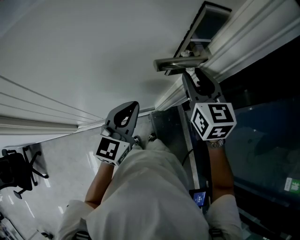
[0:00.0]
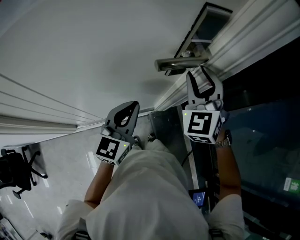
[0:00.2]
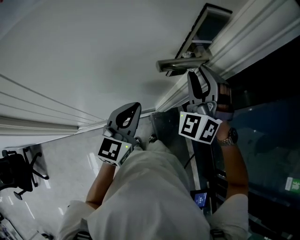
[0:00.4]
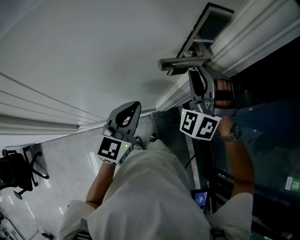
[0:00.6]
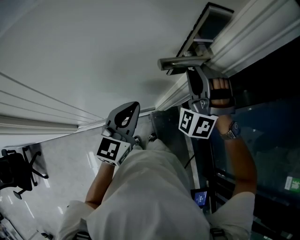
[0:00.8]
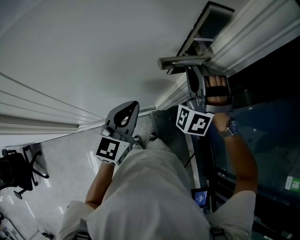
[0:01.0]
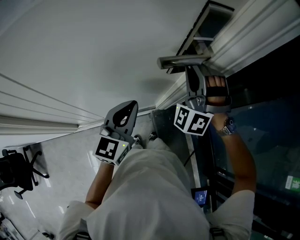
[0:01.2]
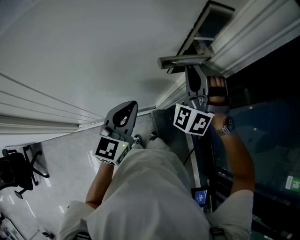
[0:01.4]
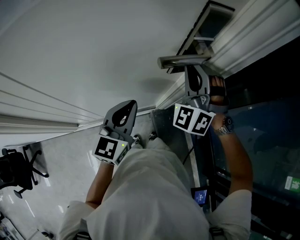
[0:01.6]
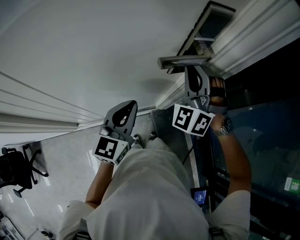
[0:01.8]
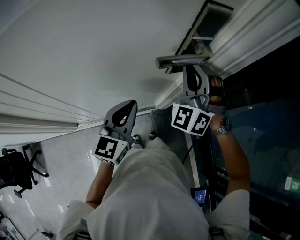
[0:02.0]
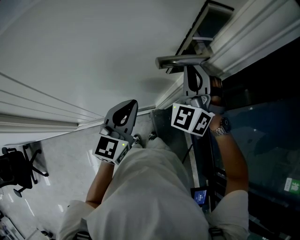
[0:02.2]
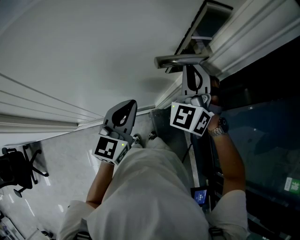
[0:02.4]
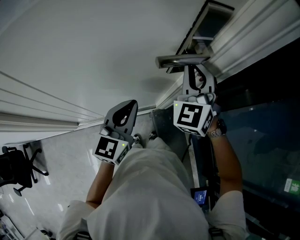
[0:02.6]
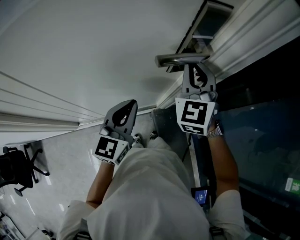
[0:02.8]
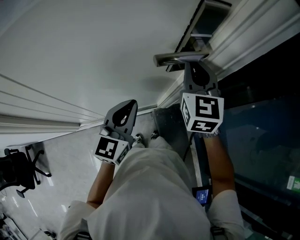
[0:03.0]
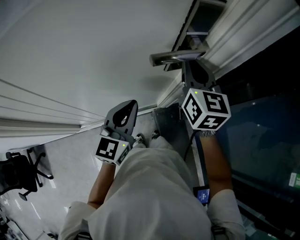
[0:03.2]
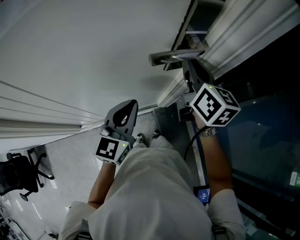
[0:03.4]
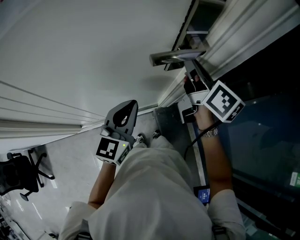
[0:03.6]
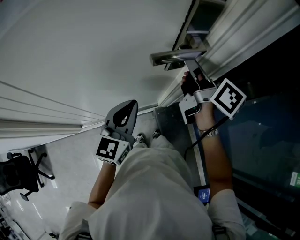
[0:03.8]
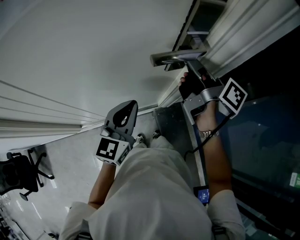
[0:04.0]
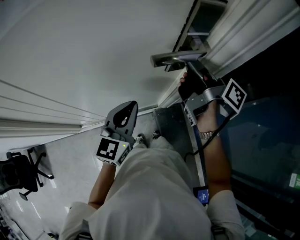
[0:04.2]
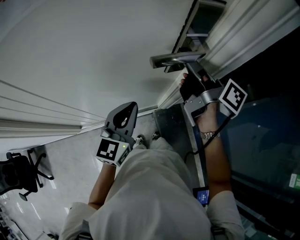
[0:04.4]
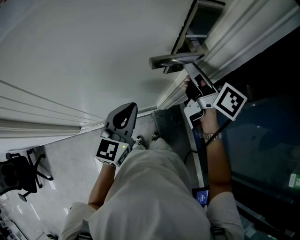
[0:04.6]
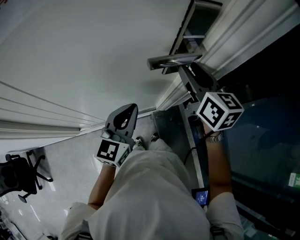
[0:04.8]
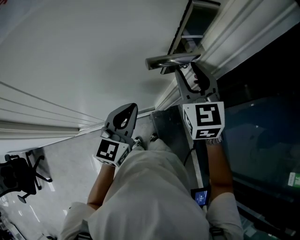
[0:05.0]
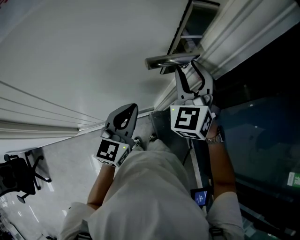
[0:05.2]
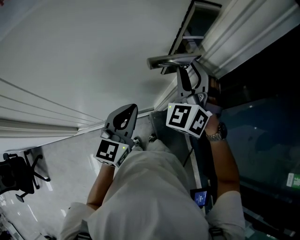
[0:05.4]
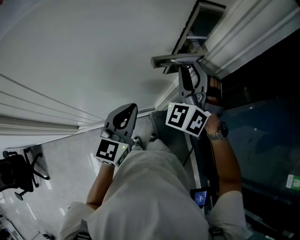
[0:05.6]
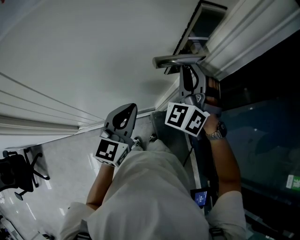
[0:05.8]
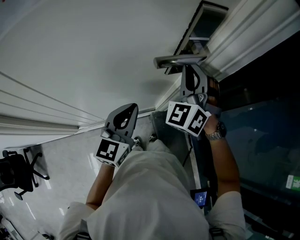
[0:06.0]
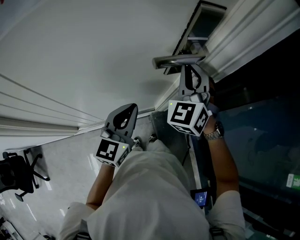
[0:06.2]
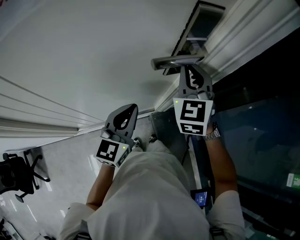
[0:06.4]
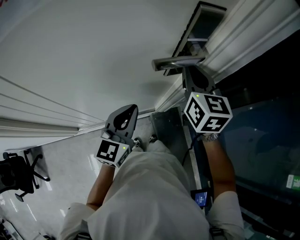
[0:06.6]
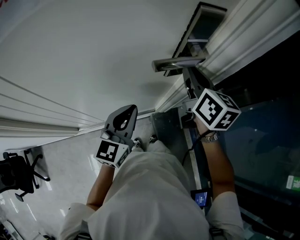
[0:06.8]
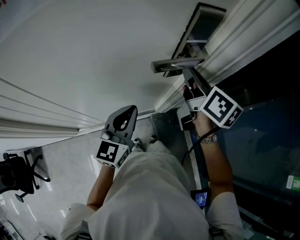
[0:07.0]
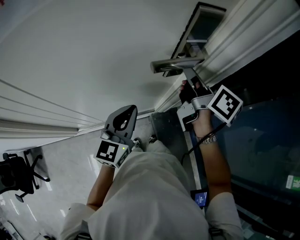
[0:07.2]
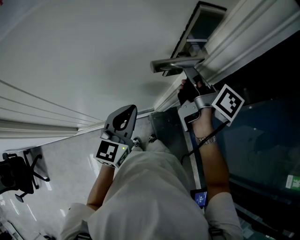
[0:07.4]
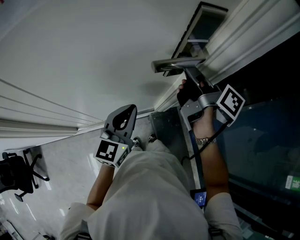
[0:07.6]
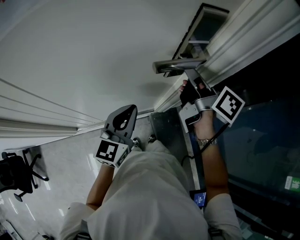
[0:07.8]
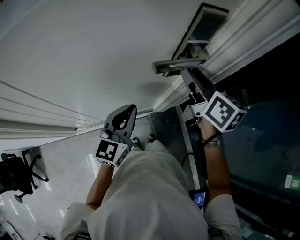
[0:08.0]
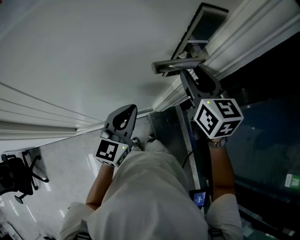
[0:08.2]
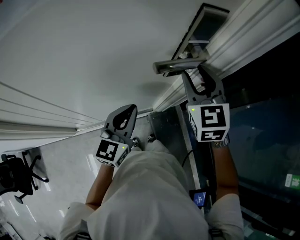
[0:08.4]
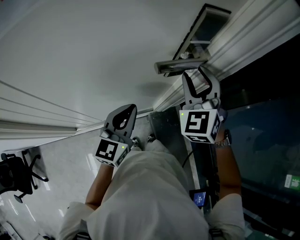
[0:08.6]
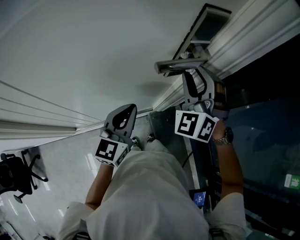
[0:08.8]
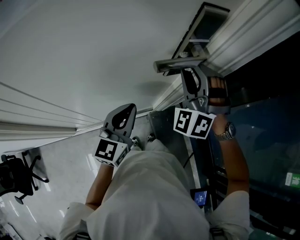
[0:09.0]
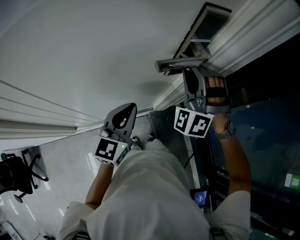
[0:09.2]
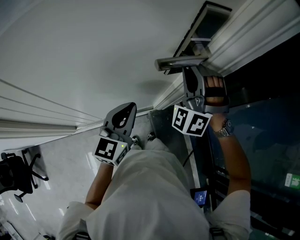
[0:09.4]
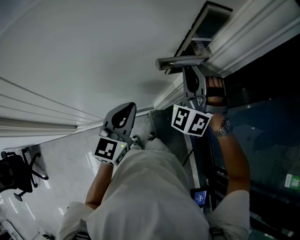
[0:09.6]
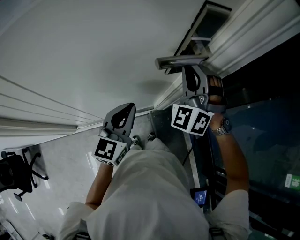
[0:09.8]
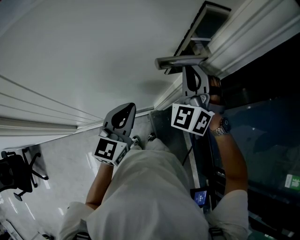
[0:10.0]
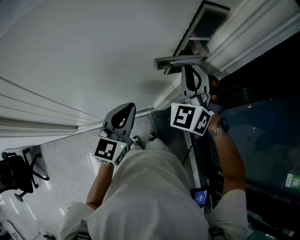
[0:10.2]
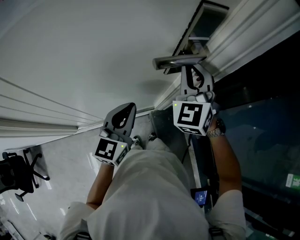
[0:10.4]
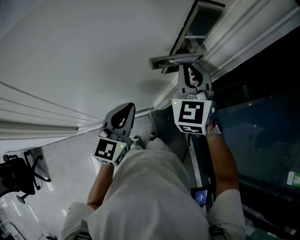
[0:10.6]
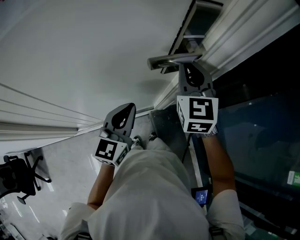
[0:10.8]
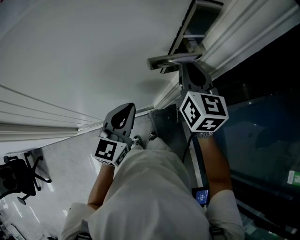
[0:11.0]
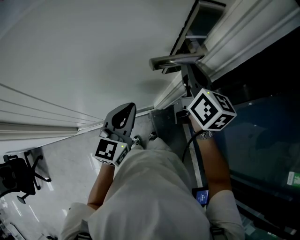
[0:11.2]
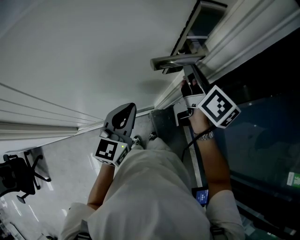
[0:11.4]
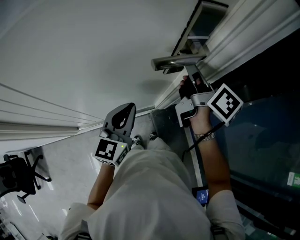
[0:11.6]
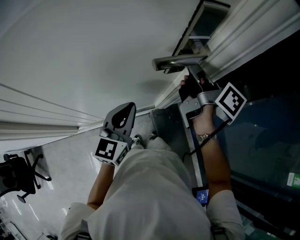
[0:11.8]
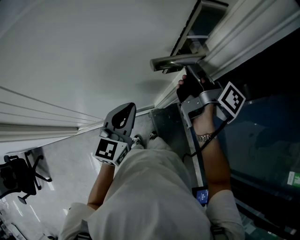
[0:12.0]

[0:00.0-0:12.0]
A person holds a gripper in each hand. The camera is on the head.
0:00.0 to 0:01.6: The right gripper rolls counterclockwise, seen from behind, by some 70 degrees, and closes up.
0:01.6 to 0:03.0: The right gripper rolls clockwise, seen from behind, by some 60 degrees.
0:03.0 to 0:04.4: The right gripper twists some 80 degrees clockwise, seen from behind.
0:04.4 to 0:06.0: The right gripper rotates around the line of its fingers by approximately 120 degrees, counterclockwise from behind, and opens, then closes again.
0:06.0 to 0:07.6: The right gripper rotates around the line of its fingers by some 130 degrees, clockwise from behind.
0:07.6 to 0:09.0: The right gripper rolls counterclockwise, seen from behind, by roughly 150 degrees, and opens.
0:09.0 to 0:10.4: The right gripper turns by roughly 40 degrees, and closes up.
0:10.4 to 0:12.0: The right gripper rotates around the line of its fingers by about 110 degrees, clockwise from behind.

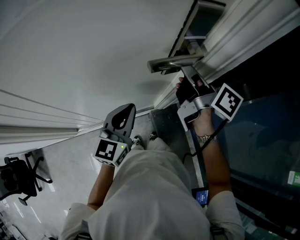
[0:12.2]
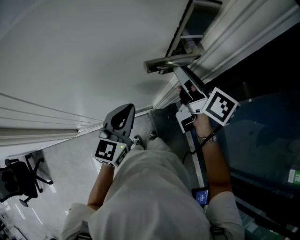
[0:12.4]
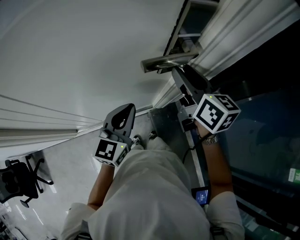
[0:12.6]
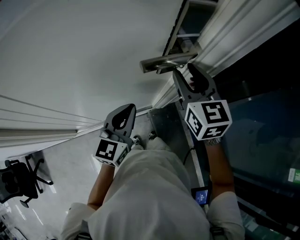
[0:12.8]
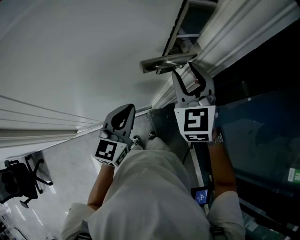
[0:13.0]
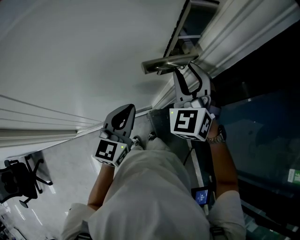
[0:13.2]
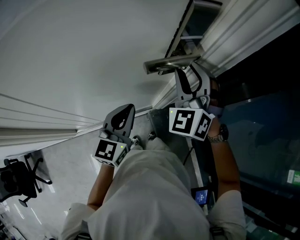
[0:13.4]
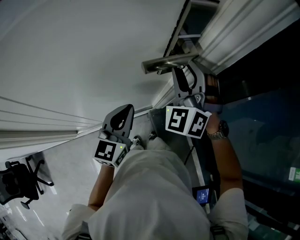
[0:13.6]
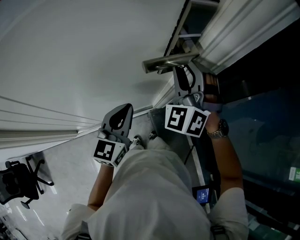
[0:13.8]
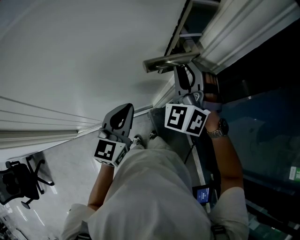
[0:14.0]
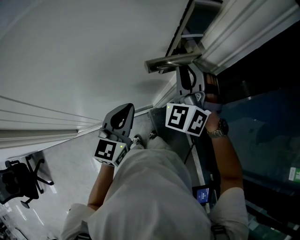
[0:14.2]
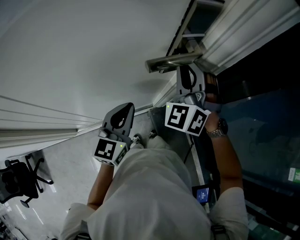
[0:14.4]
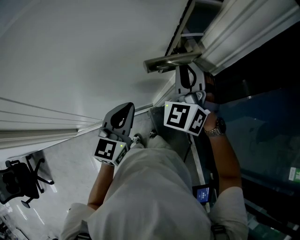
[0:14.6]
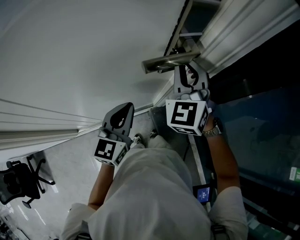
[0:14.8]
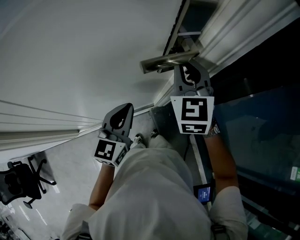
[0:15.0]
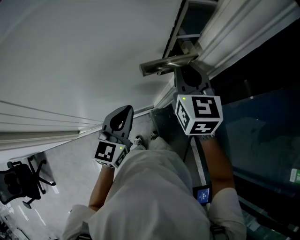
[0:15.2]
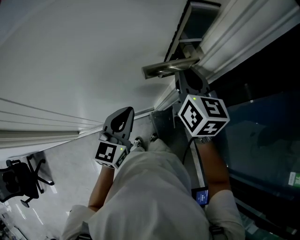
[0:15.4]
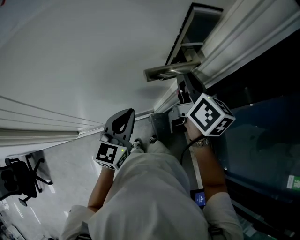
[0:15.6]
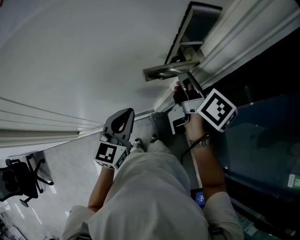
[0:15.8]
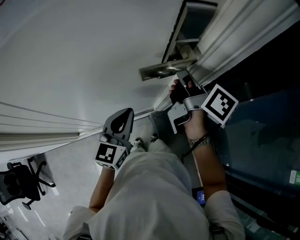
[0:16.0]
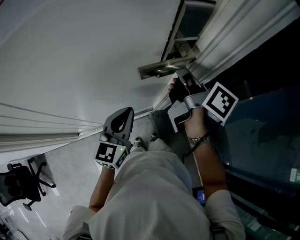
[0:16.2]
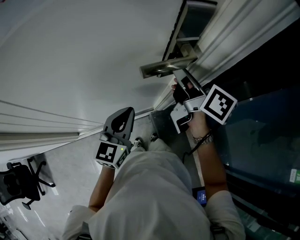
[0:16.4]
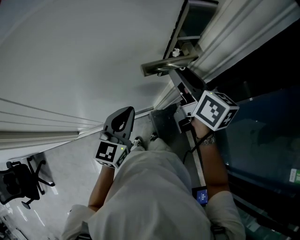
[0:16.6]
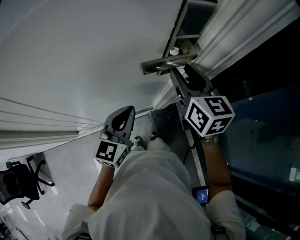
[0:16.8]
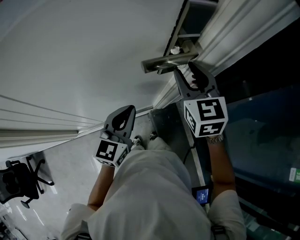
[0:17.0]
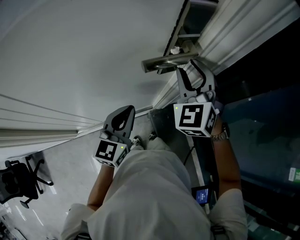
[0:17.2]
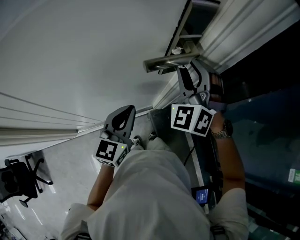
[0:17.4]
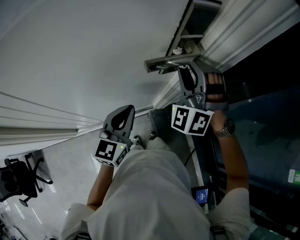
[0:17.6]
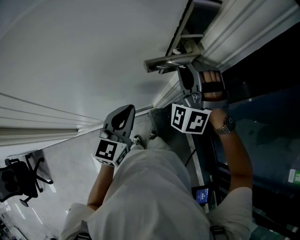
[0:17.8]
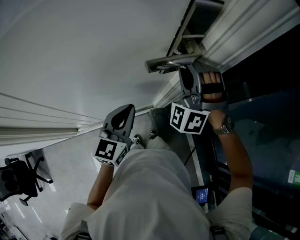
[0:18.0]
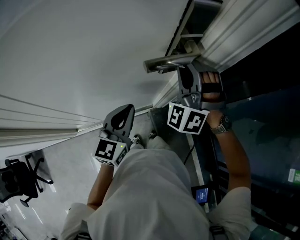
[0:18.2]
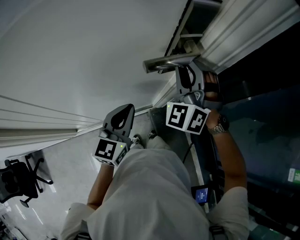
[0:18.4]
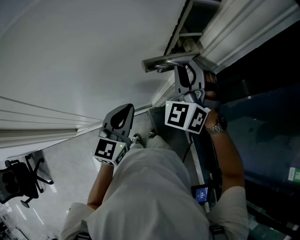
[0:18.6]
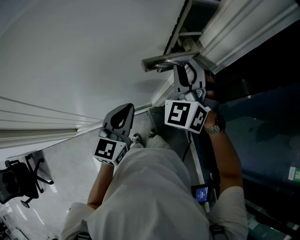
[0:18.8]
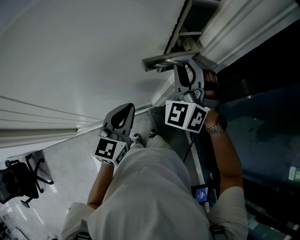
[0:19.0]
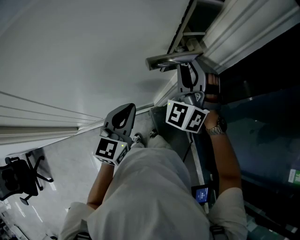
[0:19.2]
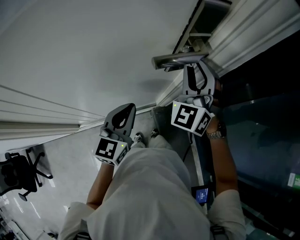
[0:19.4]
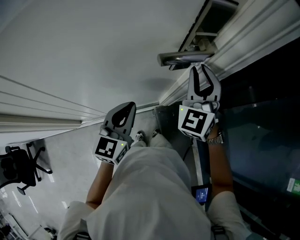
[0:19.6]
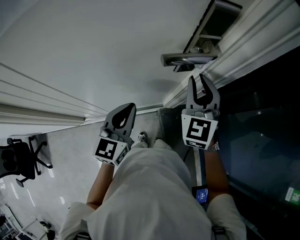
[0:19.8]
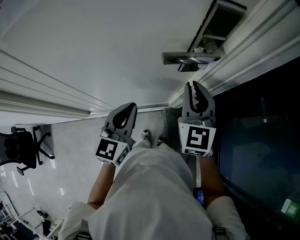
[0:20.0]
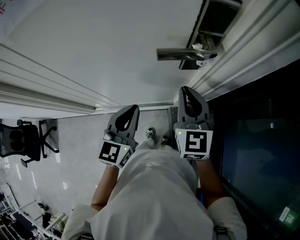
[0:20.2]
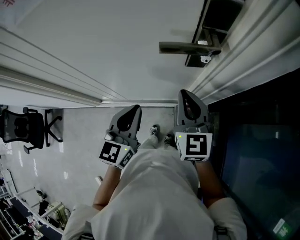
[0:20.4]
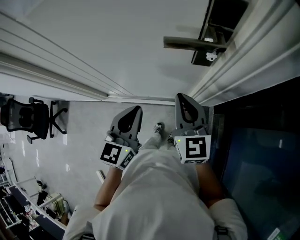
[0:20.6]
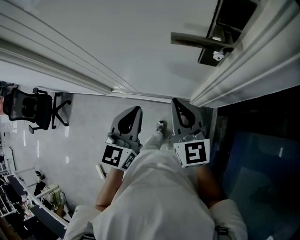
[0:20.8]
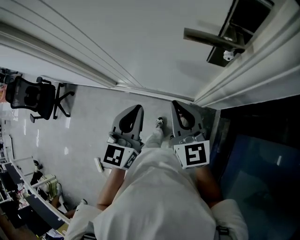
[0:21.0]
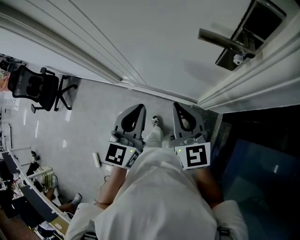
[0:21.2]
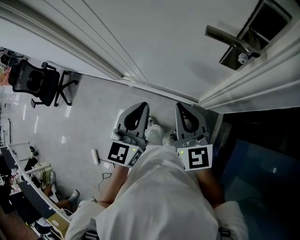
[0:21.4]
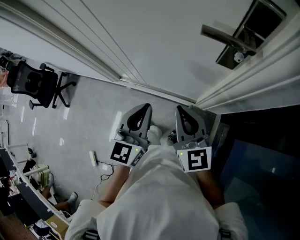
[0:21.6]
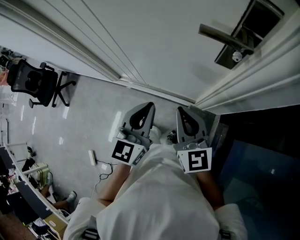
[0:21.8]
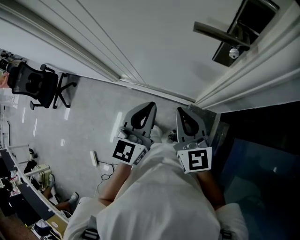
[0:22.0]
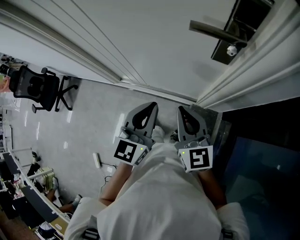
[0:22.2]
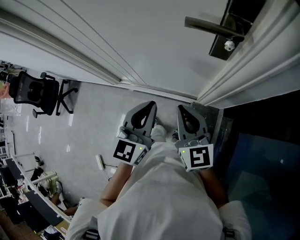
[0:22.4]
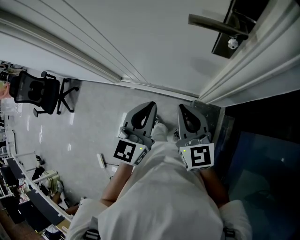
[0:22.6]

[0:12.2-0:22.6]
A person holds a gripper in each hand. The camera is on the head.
0:12.2 to 0:13.6: The right gripper twists roughly 120 degrees counterclockwise, seen from behind.
0:13.6 to 0:15.2: The right gripper rolls clockwise, seen from behind, by about 60 degrees, and closes up.
0:15.2 to 0:16.6: The right gripper changes its angle by about 40 degrees, and opens up.
0:16.6 to 0:18.2: The right gripper twists roughly 110 degrees counterclockwise, seen from behind.
0:18.2 to 0:19.6: The right gripper rotates approximately 40 degrees.
0:19.6 to 0:21.2: The right gripper ends up some 20 cm from where it was, and turns by roughly 70 degrees, while the left gripper moves about 15 cm, and changes its angle by approximately 40 degrees.
0:21.2 to 0:22.6: The grippers make only small movements.

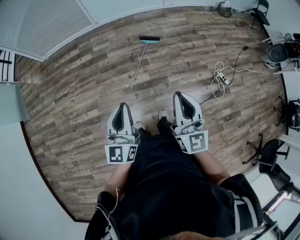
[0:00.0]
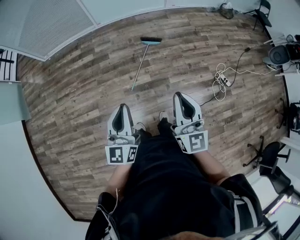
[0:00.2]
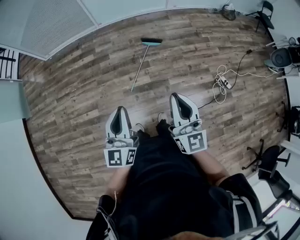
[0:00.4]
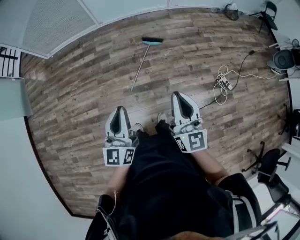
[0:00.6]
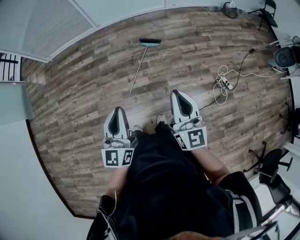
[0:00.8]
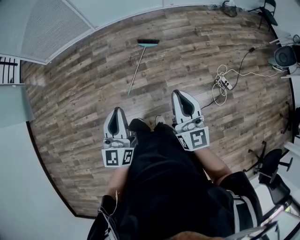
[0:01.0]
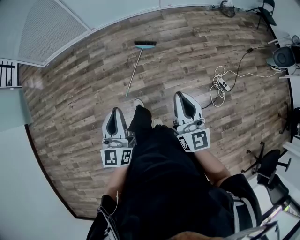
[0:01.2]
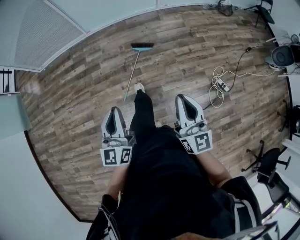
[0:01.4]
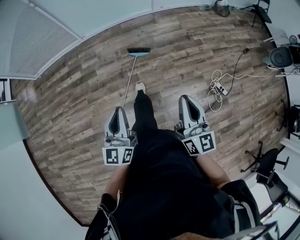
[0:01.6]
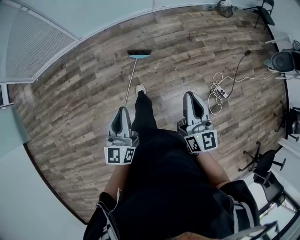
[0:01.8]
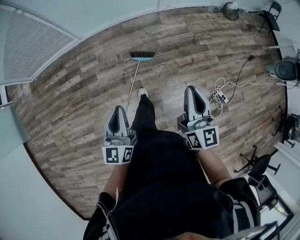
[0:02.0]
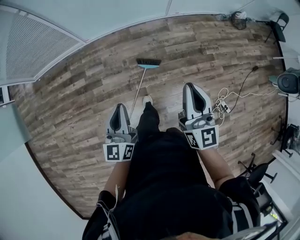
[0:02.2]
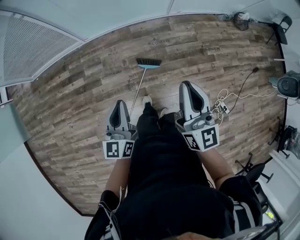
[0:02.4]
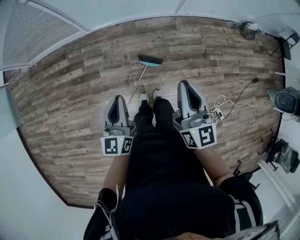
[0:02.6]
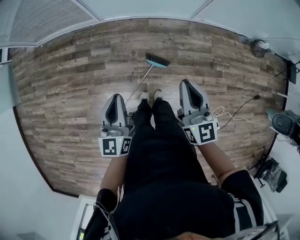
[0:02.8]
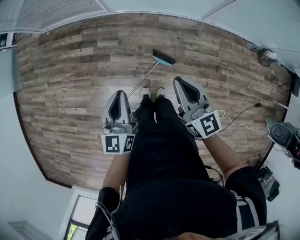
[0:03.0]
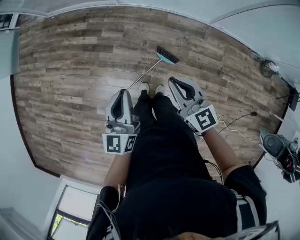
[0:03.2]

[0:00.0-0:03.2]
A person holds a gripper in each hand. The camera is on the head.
0:00.0 to 0:01.6: The left gripper goes some 25 cm forward and to the right. Meanwhile the right gripper goes roughly 25 cm to the right and forward.
0:01.6 to 0:03.2: The left gripper moves roughly 40 cm, and swivels roughly 30 degrees. The right gripper ends up approximately 50 cm from where it was, and rotates some 60 degrees.
